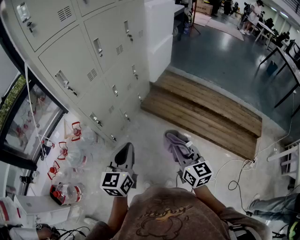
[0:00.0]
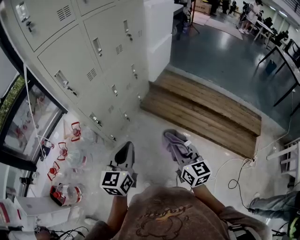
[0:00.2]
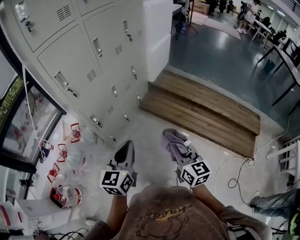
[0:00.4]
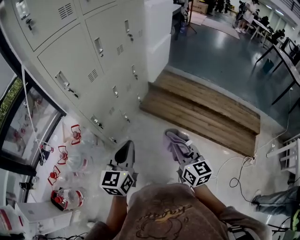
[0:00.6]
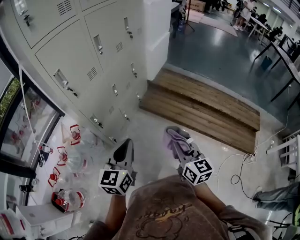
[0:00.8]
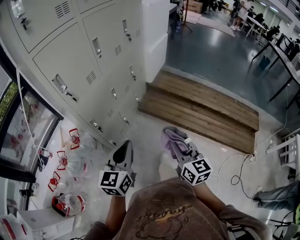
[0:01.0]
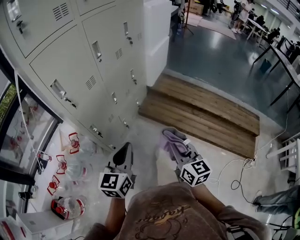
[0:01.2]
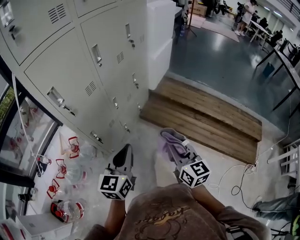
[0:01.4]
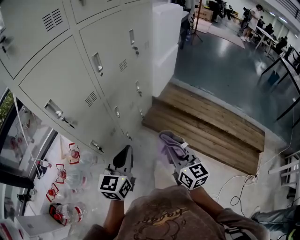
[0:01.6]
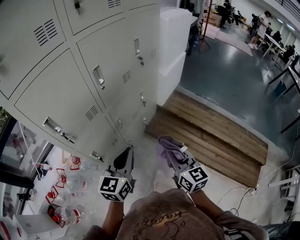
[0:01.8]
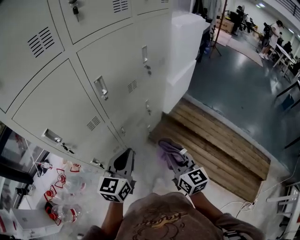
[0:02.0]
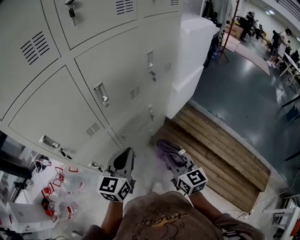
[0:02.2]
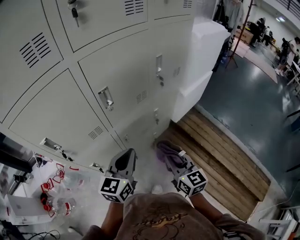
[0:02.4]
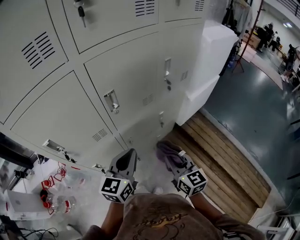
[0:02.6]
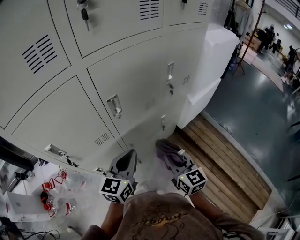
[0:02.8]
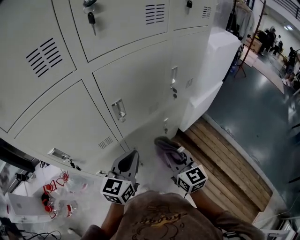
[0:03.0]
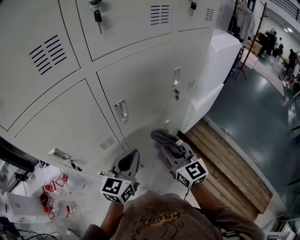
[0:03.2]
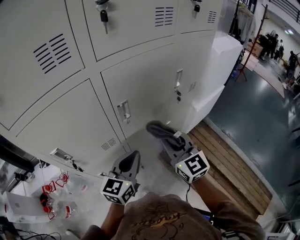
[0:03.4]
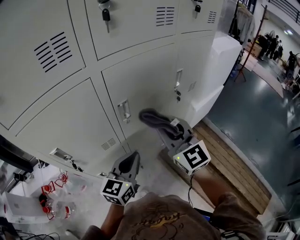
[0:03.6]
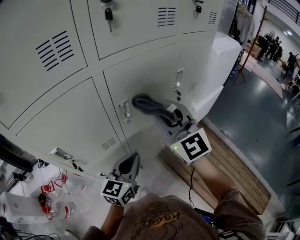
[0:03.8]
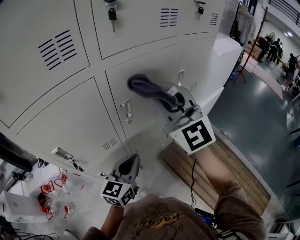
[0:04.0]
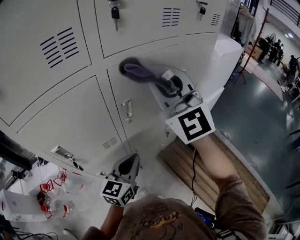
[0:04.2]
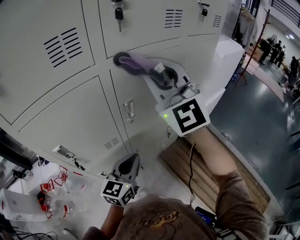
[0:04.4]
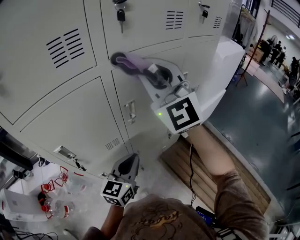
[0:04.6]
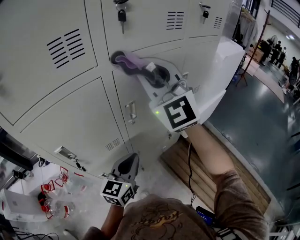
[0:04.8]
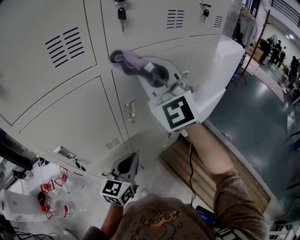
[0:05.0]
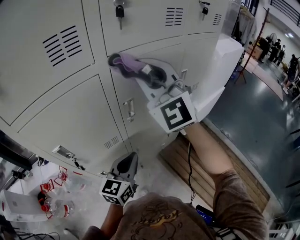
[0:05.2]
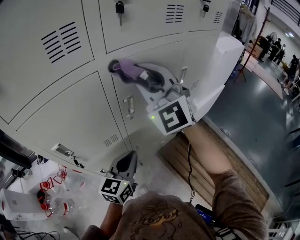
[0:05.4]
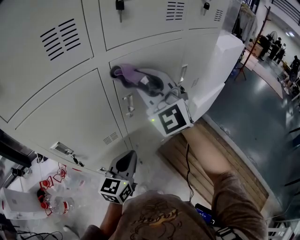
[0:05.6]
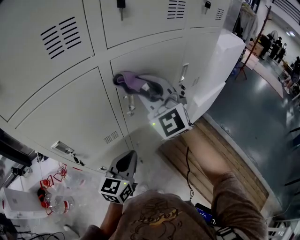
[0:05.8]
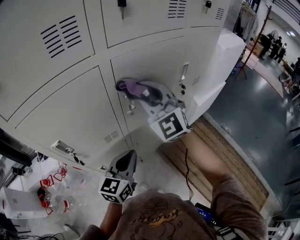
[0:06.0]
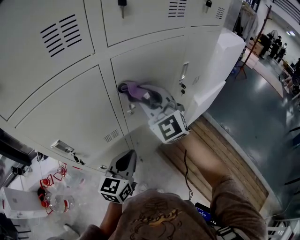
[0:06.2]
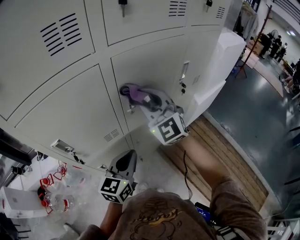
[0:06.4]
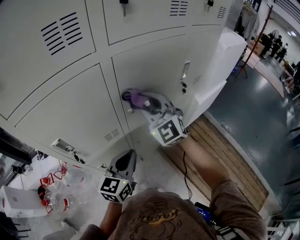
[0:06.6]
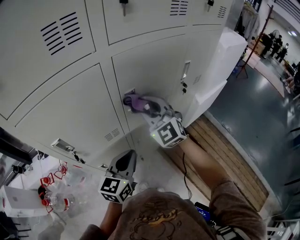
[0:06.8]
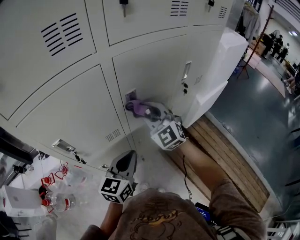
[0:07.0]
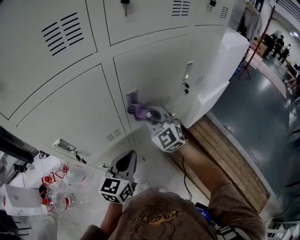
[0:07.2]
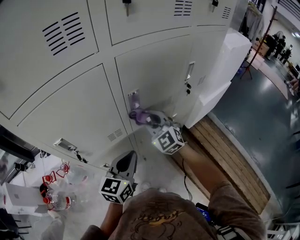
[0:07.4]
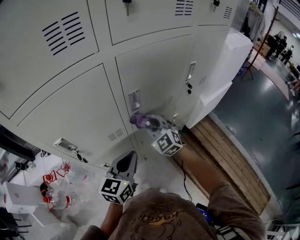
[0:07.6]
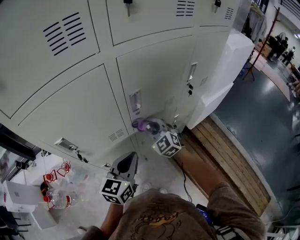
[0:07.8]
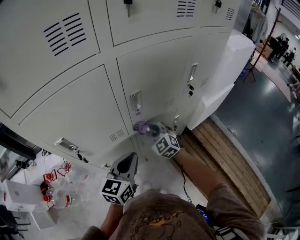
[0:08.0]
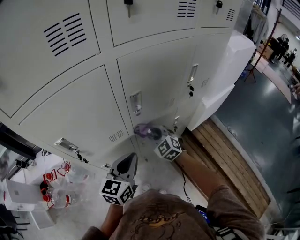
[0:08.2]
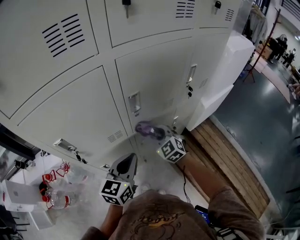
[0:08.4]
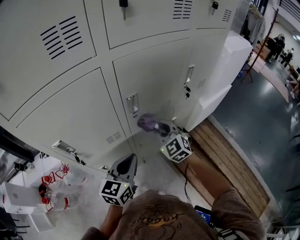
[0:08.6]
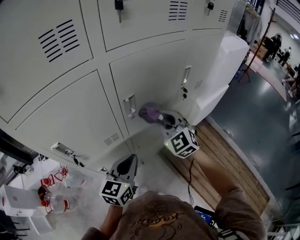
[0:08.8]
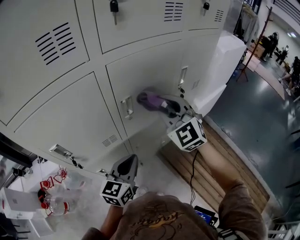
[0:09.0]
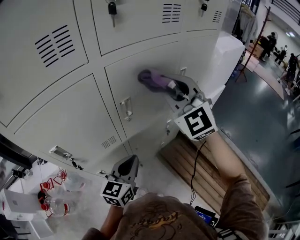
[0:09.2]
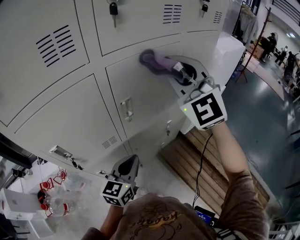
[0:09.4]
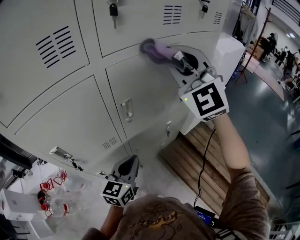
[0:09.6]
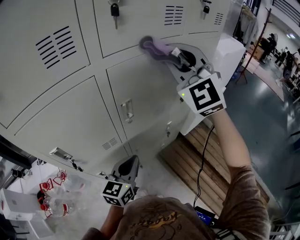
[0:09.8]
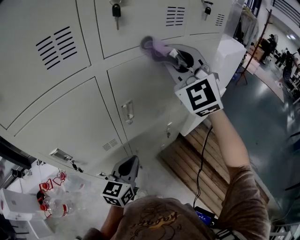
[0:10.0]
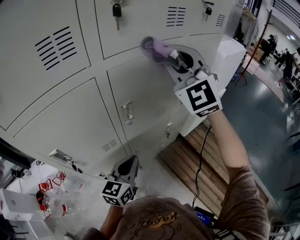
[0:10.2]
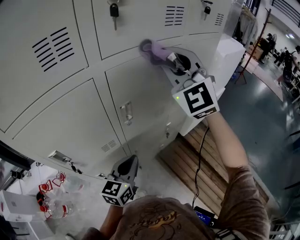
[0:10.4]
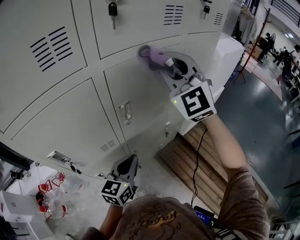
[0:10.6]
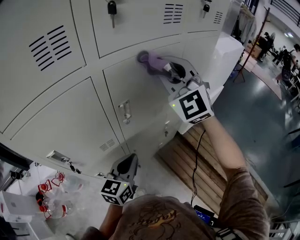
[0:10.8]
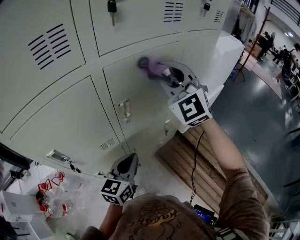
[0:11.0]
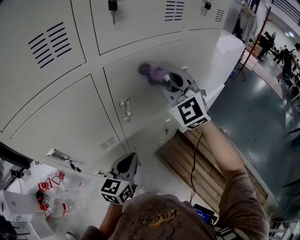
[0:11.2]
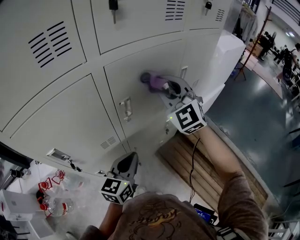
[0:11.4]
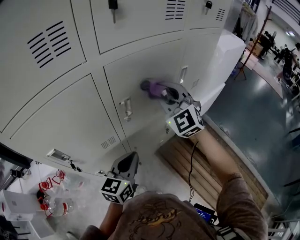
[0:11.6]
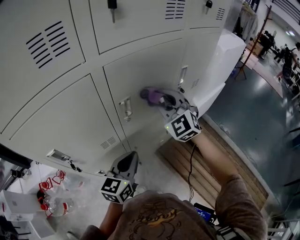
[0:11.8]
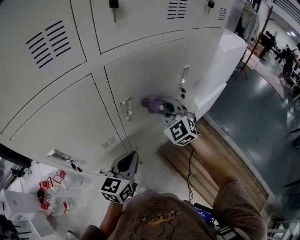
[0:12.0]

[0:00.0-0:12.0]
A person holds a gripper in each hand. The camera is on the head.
0:00.0 to 0:01.6: Both grippers move forward, approximately 20 cm.
0:01.6 to 0:03.0: Both grippers move forward, roughly 25 cm. The right gripper rotates roughly 30 degrees.
0:03.0 to 0:04.4: The right gripper is displaced upward by some 30 cm, and twists approximately 40 degrees counterclockwise, seen from behind.
0:04.4 to 0:06.0: The right gripper is displaced downward by approximately 15 cm.
0:06.0 to 0:07.6: The right gripper heads downward, covering roughly 20 cm, and changes its angle by approximately 20 degrees.
0:07.6 to 0:09.0: The right gripper goes some 20 cm upward and to the right.
0:09.0 to 0:10.4: The right gripper shifts roughly 15 cm upward.
0:10.4 to 0:12.0: The right gripper is displaced downward by approximately 25 cm, and turns by some 20 degrees.

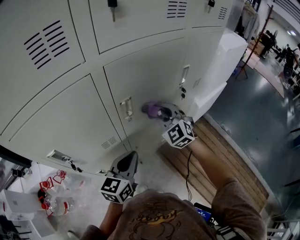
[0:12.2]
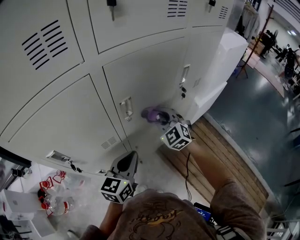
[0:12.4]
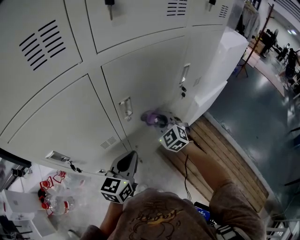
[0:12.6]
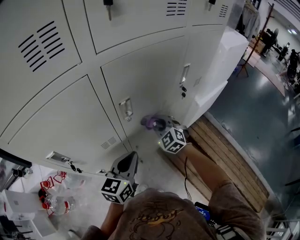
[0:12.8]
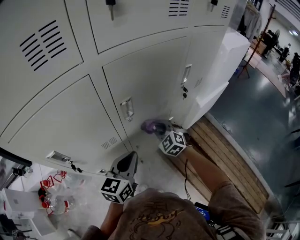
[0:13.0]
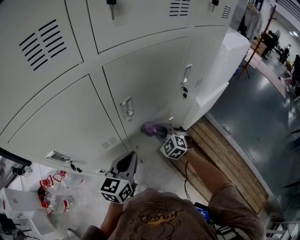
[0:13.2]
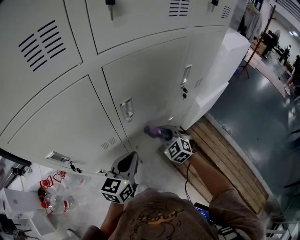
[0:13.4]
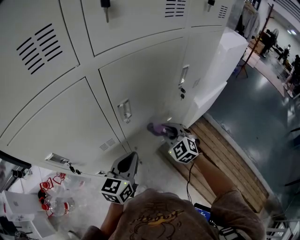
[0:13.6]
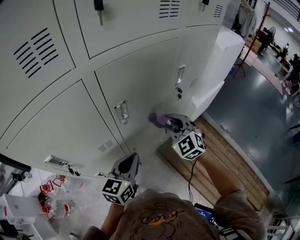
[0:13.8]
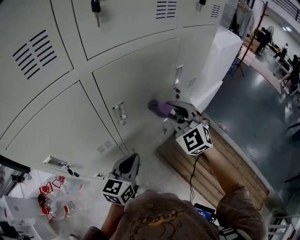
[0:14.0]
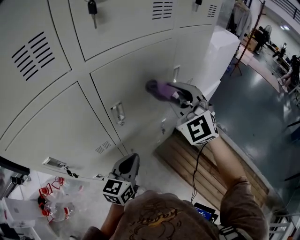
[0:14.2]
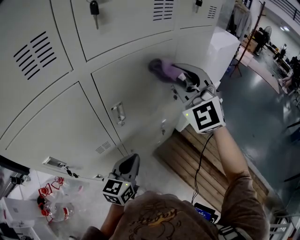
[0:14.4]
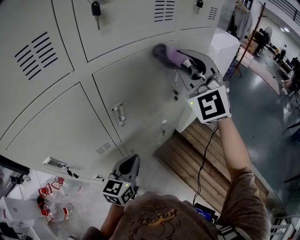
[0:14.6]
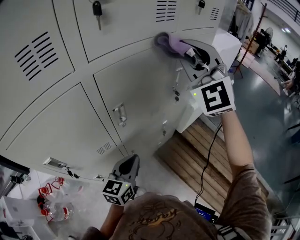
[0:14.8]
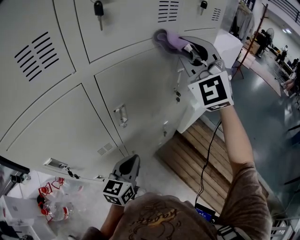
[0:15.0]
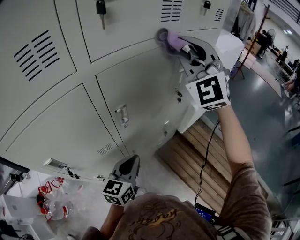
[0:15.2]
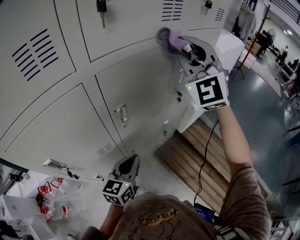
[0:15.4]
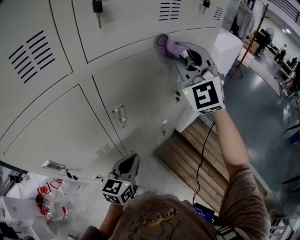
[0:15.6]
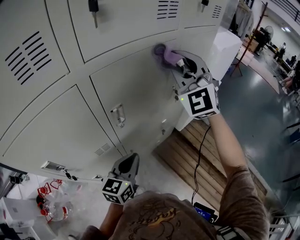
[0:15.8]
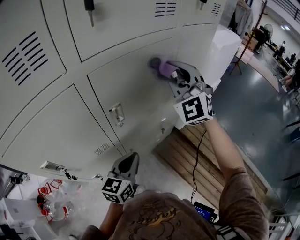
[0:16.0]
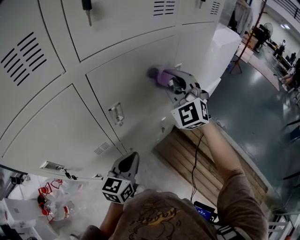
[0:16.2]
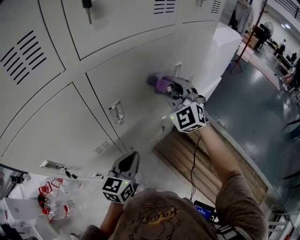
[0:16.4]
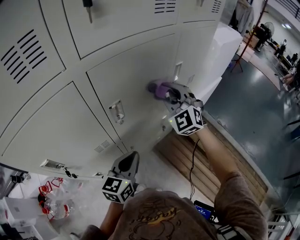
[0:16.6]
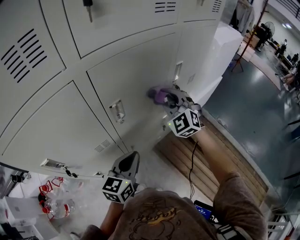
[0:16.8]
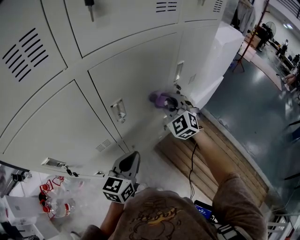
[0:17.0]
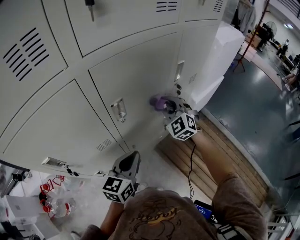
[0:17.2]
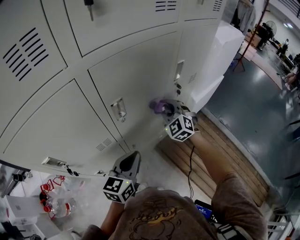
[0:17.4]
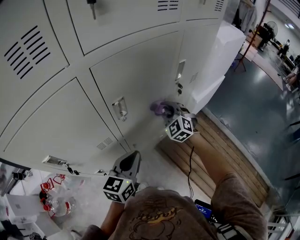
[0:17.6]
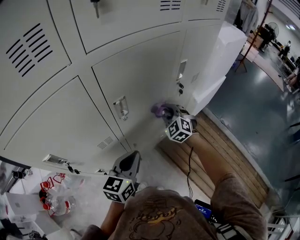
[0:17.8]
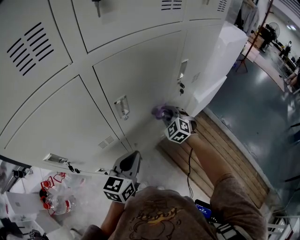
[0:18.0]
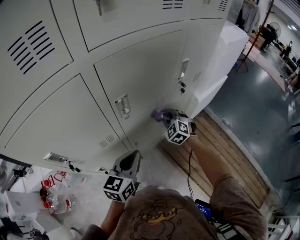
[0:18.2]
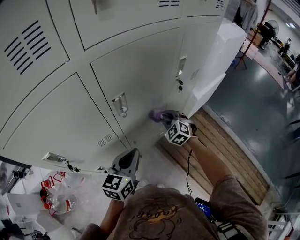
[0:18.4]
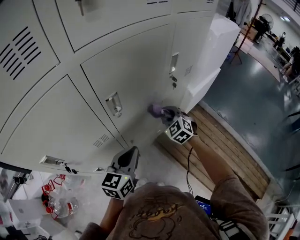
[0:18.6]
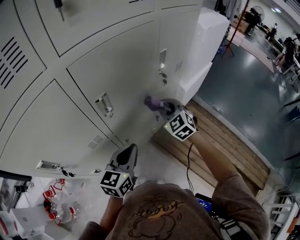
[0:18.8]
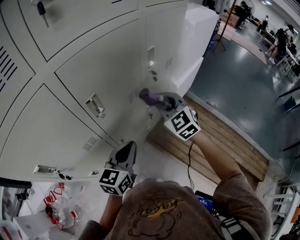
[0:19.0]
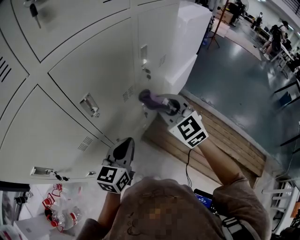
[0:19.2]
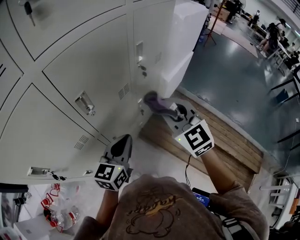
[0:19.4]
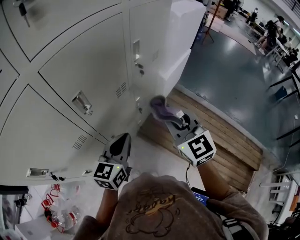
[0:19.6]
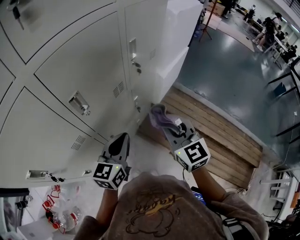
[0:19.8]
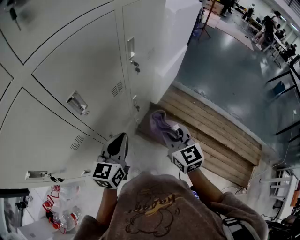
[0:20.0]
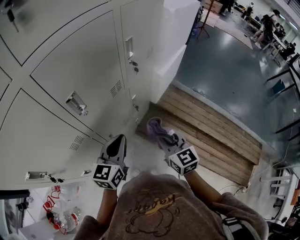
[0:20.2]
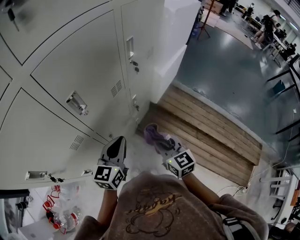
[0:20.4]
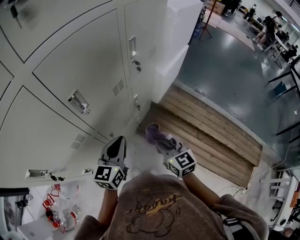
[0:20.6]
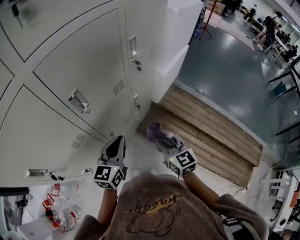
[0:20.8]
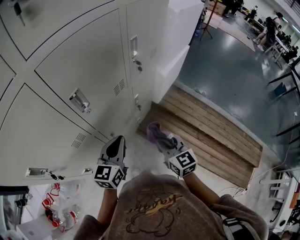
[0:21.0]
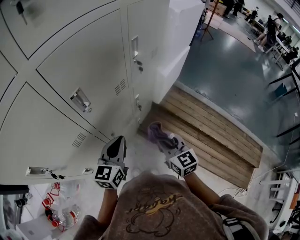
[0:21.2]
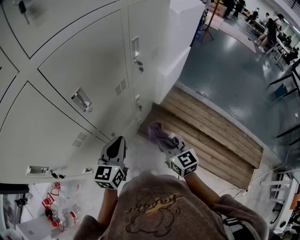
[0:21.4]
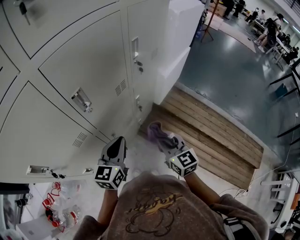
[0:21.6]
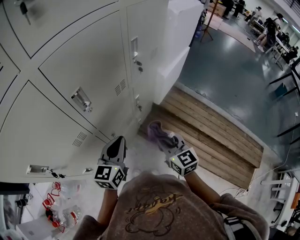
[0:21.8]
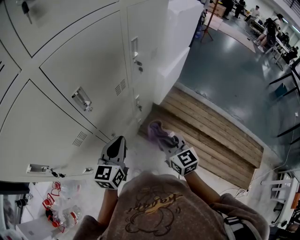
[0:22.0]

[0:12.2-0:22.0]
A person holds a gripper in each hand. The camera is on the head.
0:12.2 to 0:13.6: The right gripper moves downward, roughly 10 cm.
0:13.6 to 0:15.0: The right gripper is displaced upward by some 40 cm, and tilts its fingers approximately 40 degrees upward.
0:15.0 to 0:16.4: The right gripper goes some 20 cm downward.
0:16.4 to 0:17.8: The right gripper is displaced downward by about 20 cm, and changes its angle by some 20 degrees.
0:17.8 to 0:19.2: The left gripper moves to the right, roughly 5 cm. Meanwhile the right gripper is displaced upward, backward and to the right by some 20 cm, and changes its angle by some 20 degrees.
0:19.2 to 0:20.6: The right gripper shifts approximately 20 cm downward and backward, and changes its angle by roughly 40 degrees.
0:20.6 to 0:22.0: Neither gripper changes place.

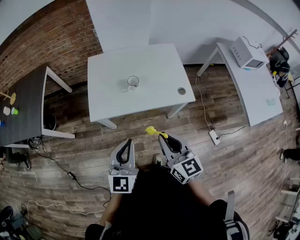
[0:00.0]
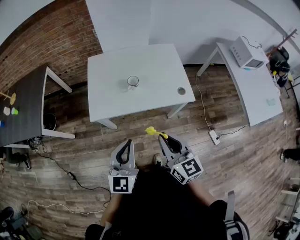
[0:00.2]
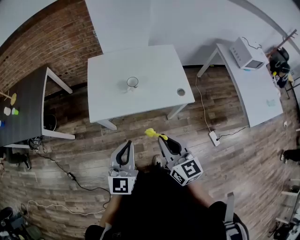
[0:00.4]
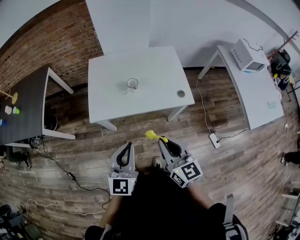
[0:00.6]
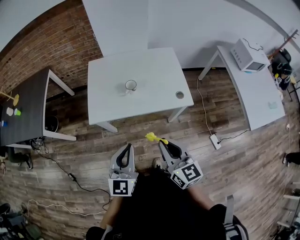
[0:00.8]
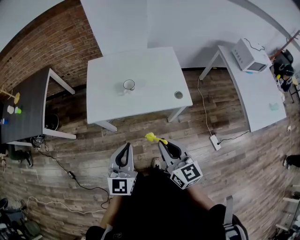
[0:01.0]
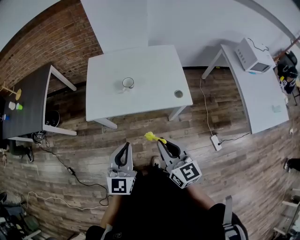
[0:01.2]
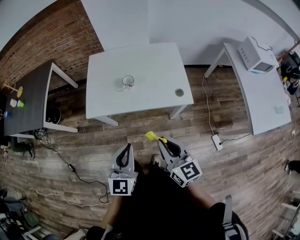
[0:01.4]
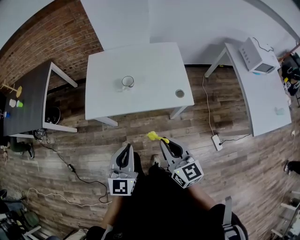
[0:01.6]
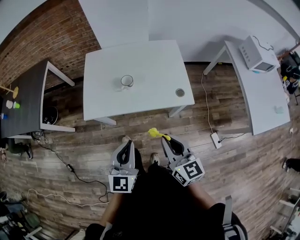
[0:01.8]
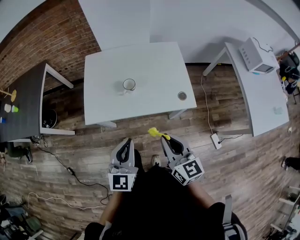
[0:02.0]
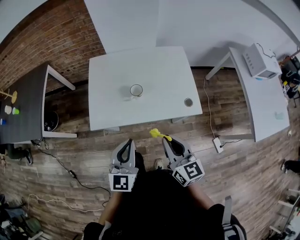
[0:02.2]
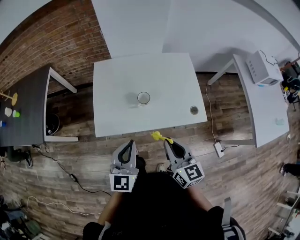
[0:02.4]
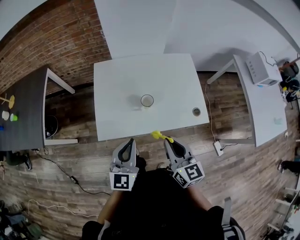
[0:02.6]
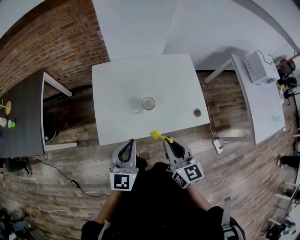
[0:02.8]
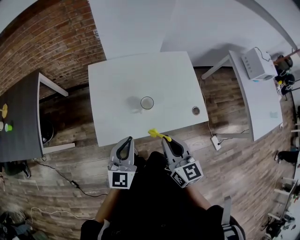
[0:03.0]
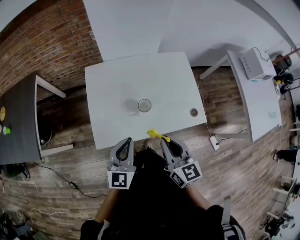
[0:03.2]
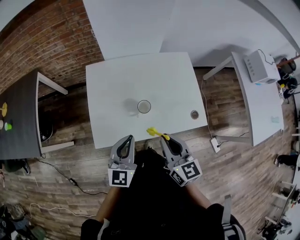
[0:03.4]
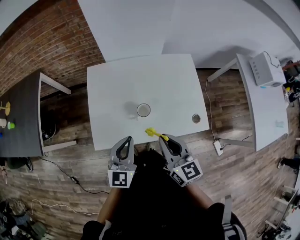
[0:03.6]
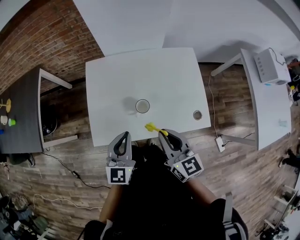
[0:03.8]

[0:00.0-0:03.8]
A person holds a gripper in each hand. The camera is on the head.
0:00.0 to 0:01.2: The grippers both shift to the right by roughly 5 cm.
0:01.2 to 0:02.6: Both grippers travel together forward and to the left, about 20 cm.
0:02.6 to 0:03.8: The grippers both shift forward by about 10 cm.
